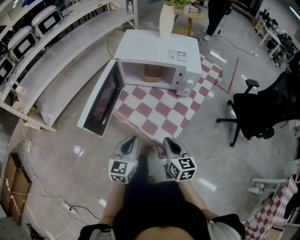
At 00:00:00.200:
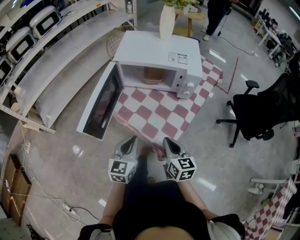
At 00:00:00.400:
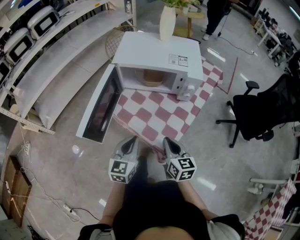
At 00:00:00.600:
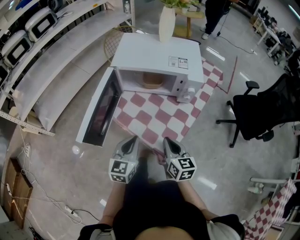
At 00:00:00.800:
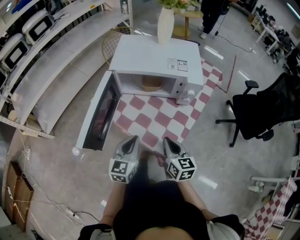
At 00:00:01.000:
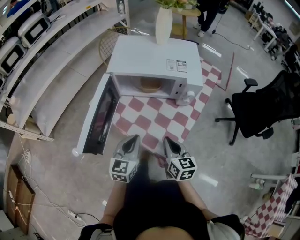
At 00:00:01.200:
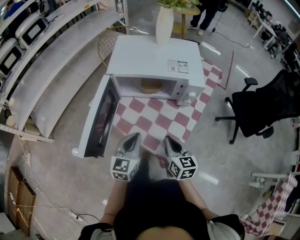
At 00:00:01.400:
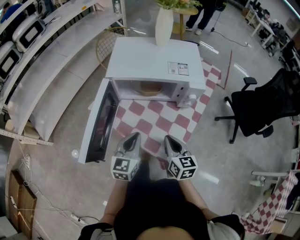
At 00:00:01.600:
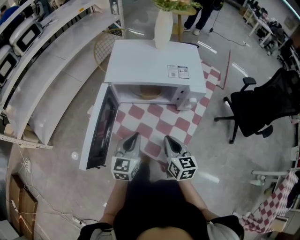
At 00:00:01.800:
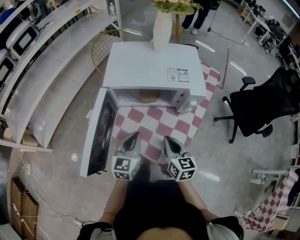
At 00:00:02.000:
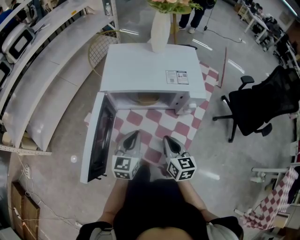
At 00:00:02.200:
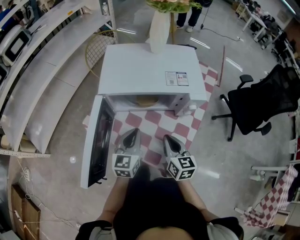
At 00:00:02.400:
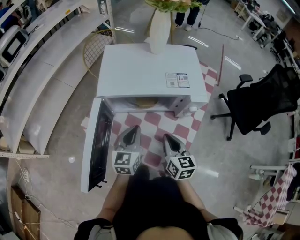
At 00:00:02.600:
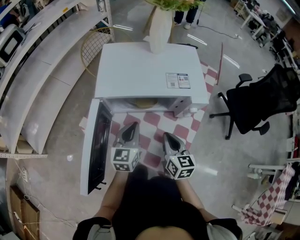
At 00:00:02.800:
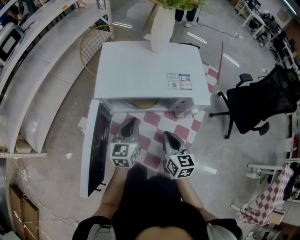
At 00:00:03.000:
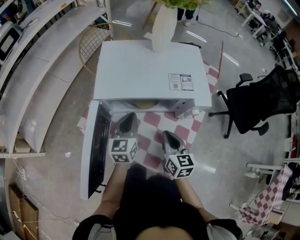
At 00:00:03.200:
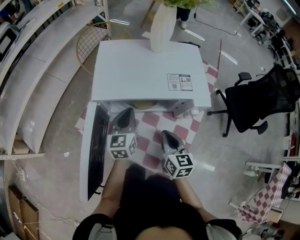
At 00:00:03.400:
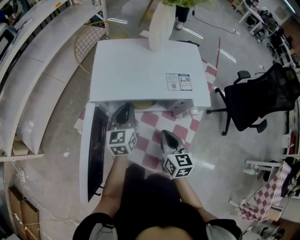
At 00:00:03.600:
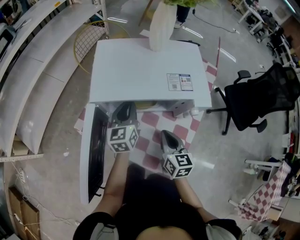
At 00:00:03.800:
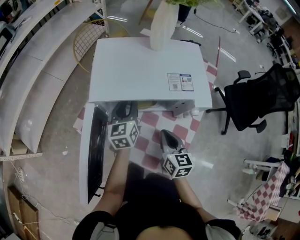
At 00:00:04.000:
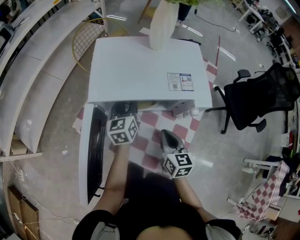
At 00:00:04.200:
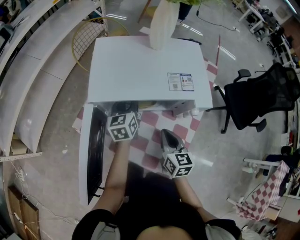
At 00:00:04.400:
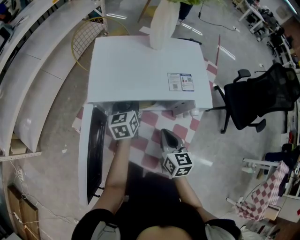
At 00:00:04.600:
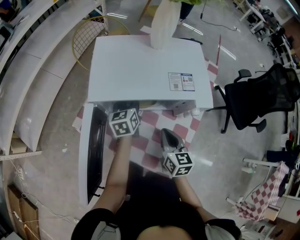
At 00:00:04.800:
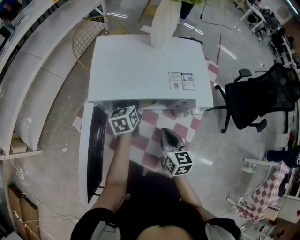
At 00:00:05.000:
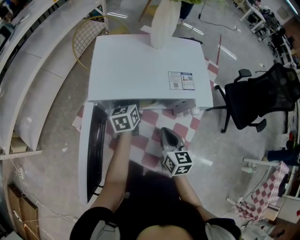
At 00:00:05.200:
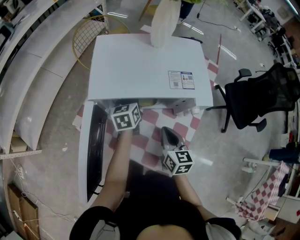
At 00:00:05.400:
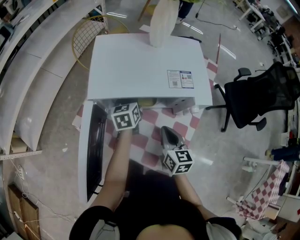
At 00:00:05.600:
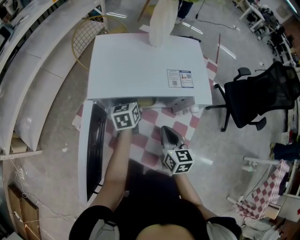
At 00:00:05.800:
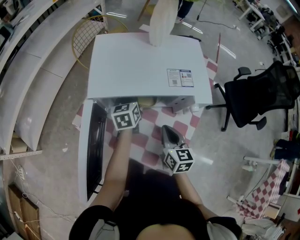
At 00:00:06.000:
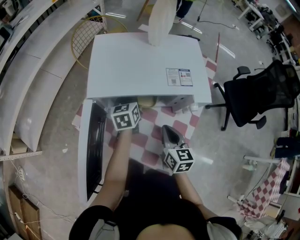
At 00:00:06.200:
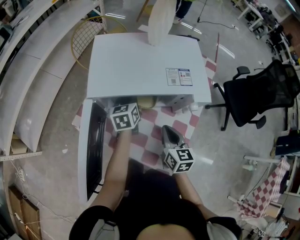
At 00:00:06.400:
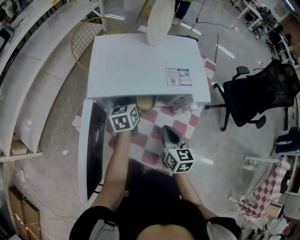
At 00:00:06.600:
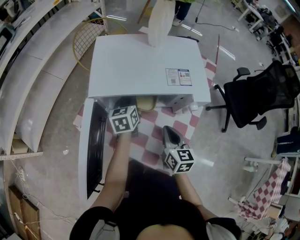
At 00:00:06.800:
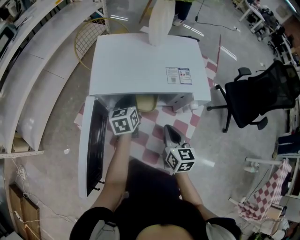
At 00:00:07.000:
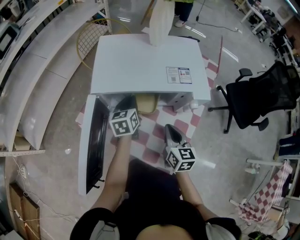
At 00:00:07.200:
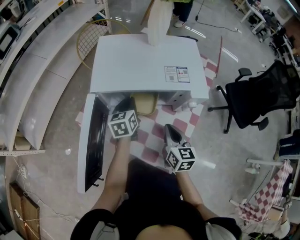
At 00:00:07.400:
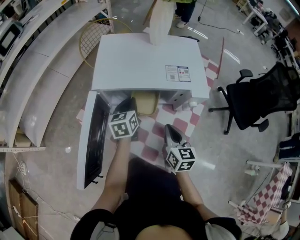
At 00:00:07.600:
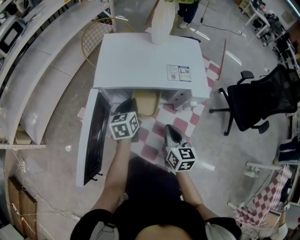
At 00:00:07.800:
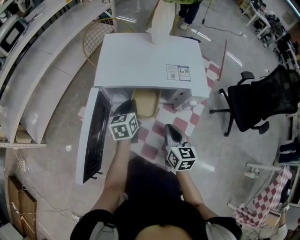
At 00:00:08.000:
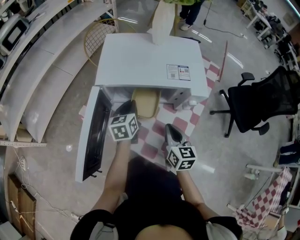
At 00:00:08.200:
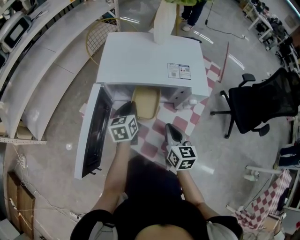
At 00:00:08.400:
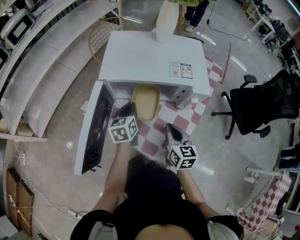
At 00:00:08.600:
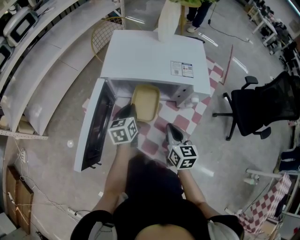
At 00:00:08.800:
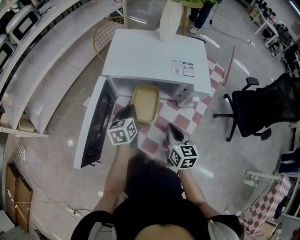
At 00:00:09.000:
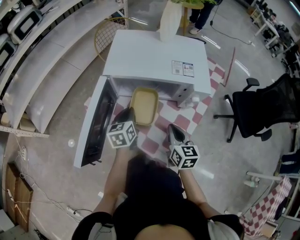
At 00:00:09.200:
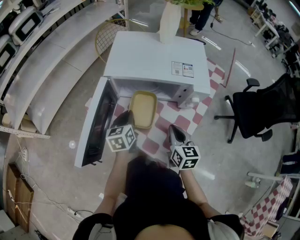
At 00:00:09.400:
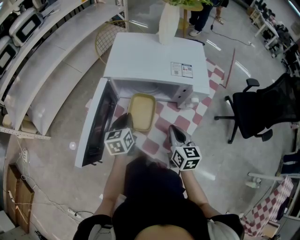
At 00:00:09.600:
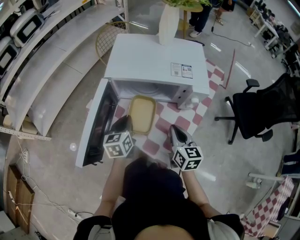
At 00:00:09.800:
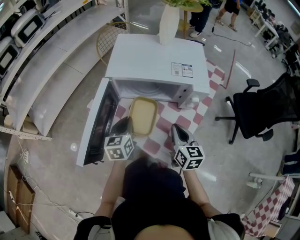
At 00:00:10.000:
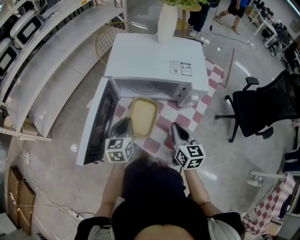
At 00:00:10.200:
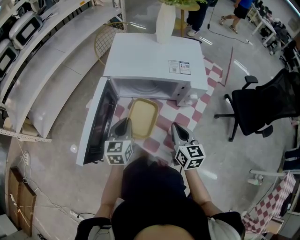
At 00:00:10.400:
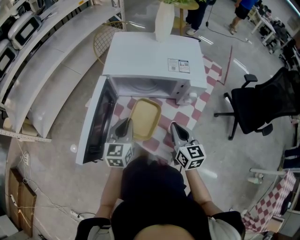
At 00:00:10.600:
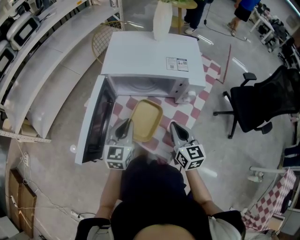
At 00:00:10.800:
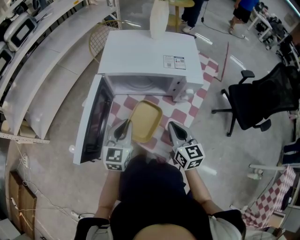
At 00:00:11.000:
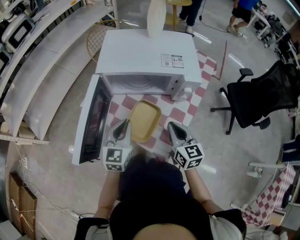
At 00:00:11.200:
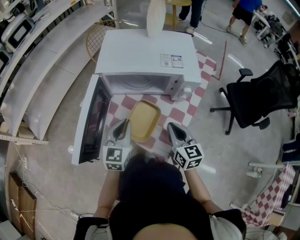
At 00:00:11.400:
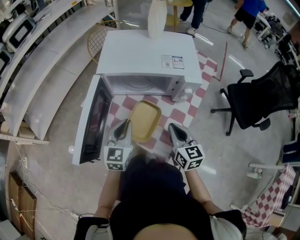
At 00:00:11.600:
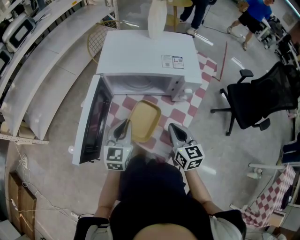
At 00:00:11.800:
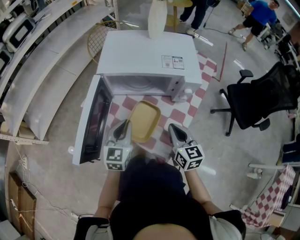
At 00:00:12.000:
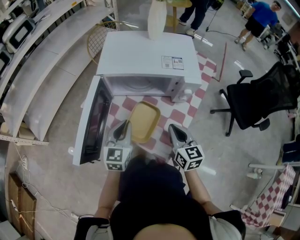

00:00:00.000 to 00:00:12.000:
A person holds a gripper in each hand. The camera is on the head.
00:00:00.000 to 00:00:01.600: Both grippers move forward, roughly 15 cm.
00:00:01.600 to 00:00:03.000: The right gripper heads forward, covering about 10 cm. Meanwhile the left gripper goes some 15 cm forward.
00:00:03.000 to 00:00:04.400: The left gripper moves forward, approximately 10 cm, and opens its fingers.
00:00:04.400 to 00:00:06.000: The left gripper closes up.
00:00:06.000 to 00:00:07.600: The left gripper travels backward by about 5 cm.
00:00:07.600 to 00:00:09.000: The left gripper moves backward, about 10 cm.
00:00:09.000 to 00:00:10.400: The left gripper is displaced backward and upward by approximately 10 cm, and turns by approximately 20 degrees.
00:00:10.400 to 00:00:12.000: The grippers move only a little.

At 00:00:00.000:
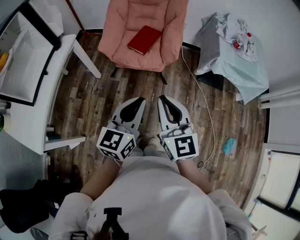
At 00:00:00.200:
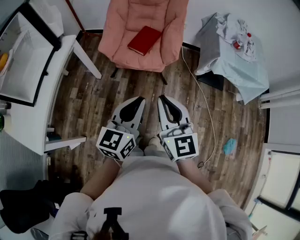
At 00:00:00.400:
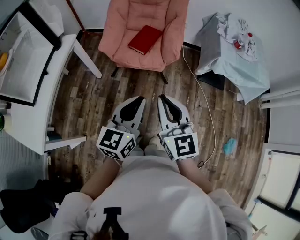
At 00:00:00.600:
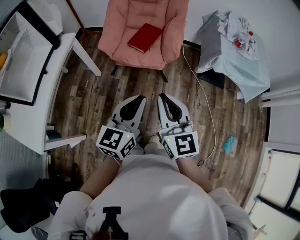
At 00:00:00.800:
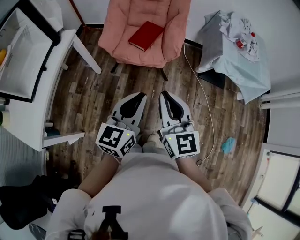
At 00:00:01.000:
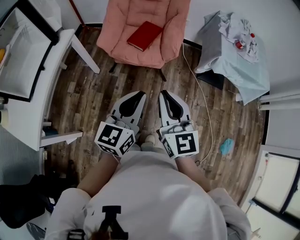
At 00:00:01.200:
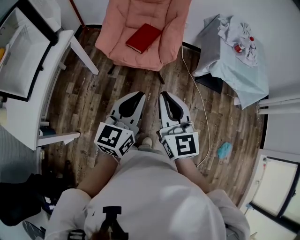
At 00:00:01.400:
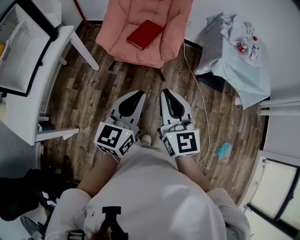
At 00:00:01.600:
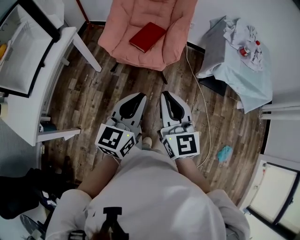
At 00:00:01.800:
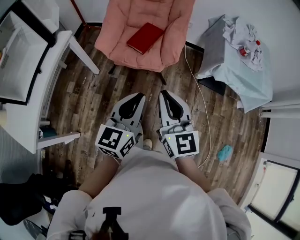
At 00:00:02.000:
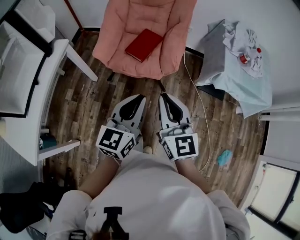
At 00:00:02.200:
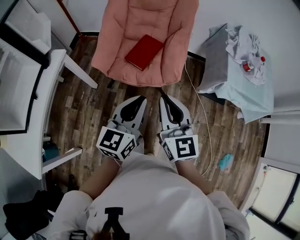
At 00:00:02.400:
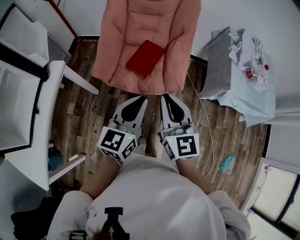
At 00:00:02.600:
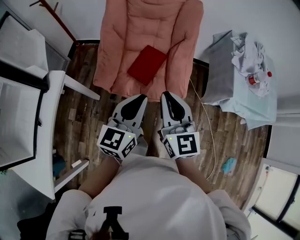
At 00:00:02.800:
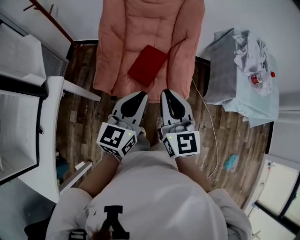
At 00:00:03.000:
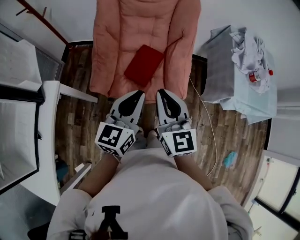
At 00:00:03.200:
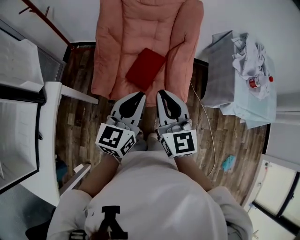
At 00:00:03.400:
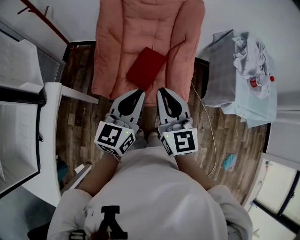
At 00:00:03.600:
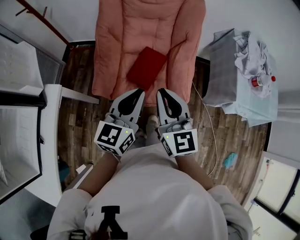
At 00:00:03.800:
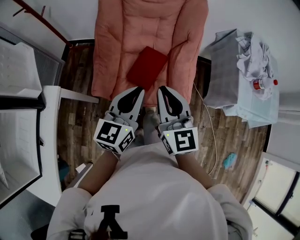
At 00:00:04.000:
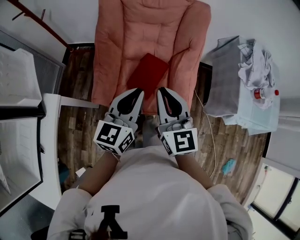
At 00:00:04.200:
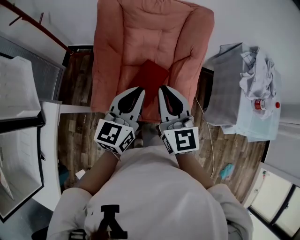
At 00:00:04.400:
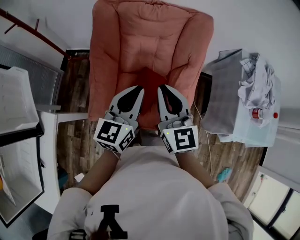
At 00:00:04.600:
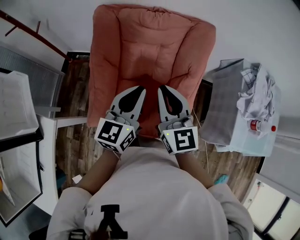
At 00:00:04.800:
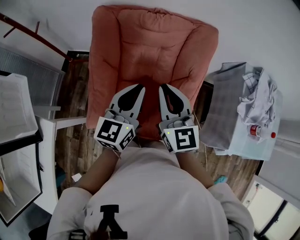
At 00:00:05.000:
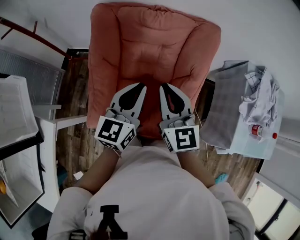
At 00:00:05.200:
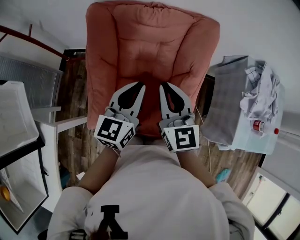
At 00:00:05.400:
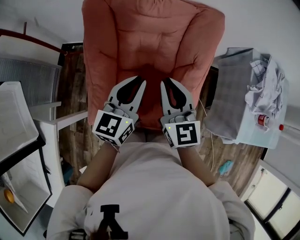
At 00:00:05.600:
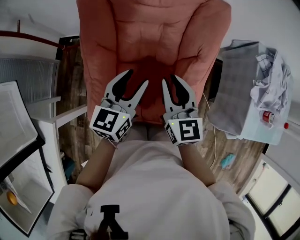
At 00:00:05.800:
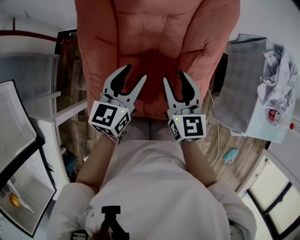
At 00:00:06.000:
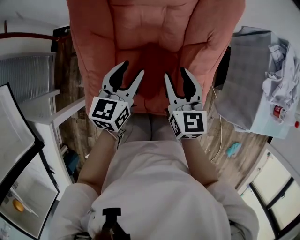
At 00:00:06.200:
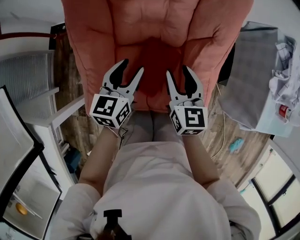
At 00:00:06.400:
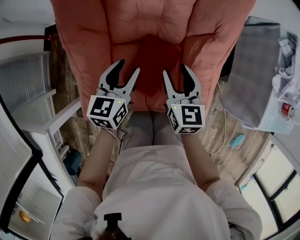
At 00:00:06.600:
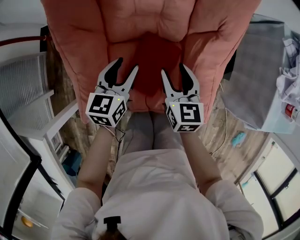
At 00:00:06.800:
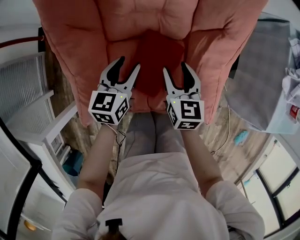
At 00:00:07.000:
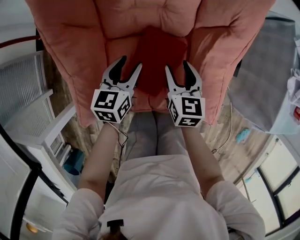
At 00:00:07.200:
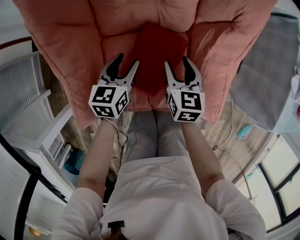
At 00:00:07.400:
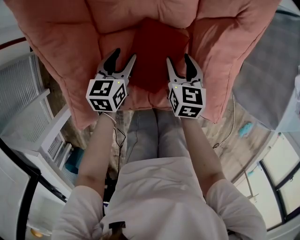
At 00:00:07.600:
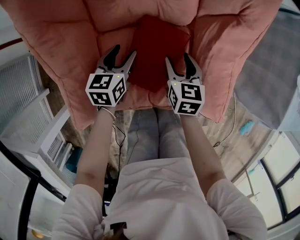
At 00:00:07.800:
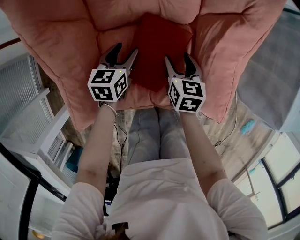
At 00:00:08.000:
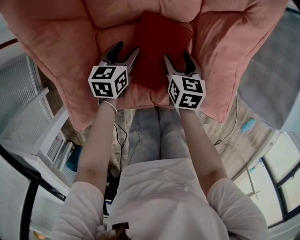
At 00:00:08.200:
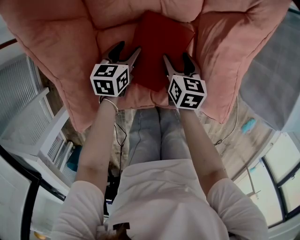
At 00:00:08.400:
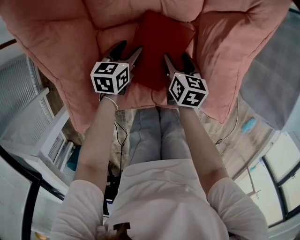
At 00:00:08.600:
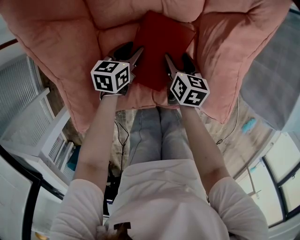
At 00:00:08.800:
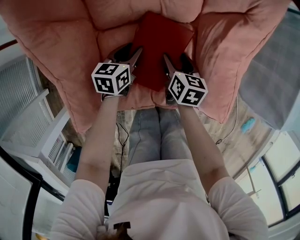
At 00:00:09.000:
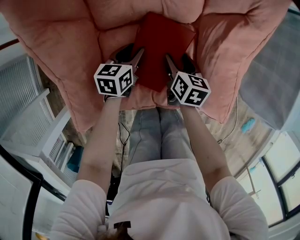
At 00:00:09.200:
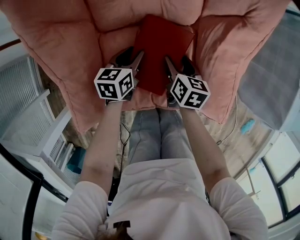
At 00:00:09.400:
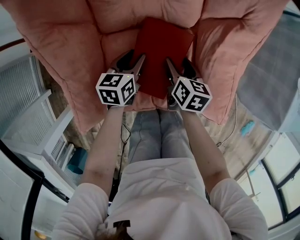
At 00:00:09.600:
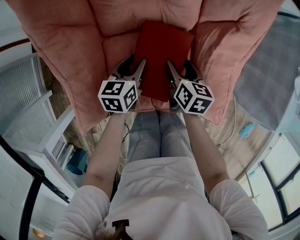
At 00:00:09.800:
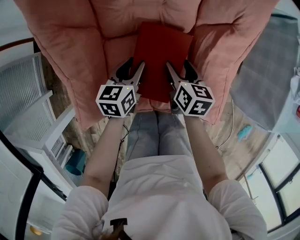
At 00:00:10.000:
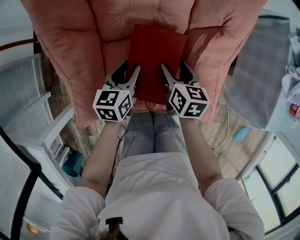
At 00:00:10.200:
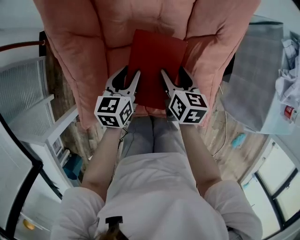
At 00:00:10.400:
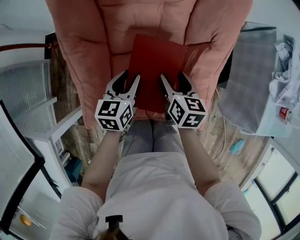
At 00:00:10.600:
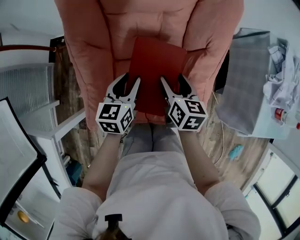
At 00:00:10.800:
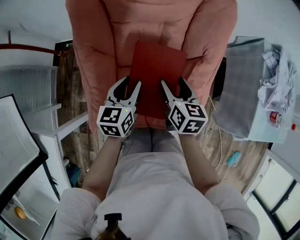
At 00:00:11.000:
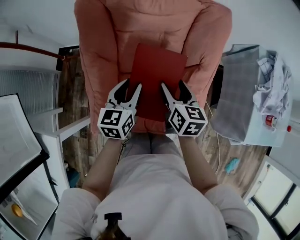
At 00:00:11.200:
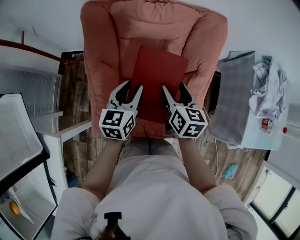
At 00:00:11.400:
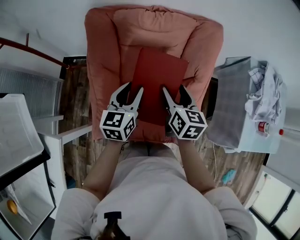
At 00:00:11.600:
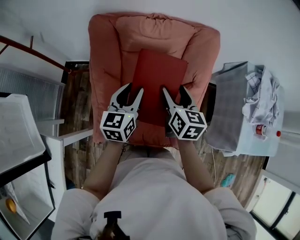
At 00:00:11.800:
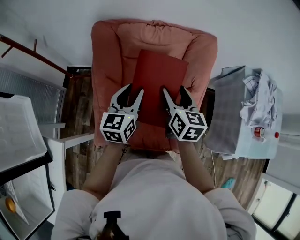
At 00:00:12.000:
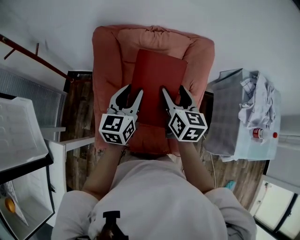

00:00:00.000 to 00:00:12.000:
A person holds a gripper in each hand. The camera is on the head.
00:00:00.000 to 00:00:01.600: The right gripper shifts by some 5 cm.
00:00:01.600 to 00:00:03.000: Both grippers travel together forward, about 35 cm.
00:00:03.000 to 00:00:04.400: The two grippers go roughly 20 cm forward.
00:00:04.400 to 00:00:06.000: Both grippers travel together downward and forward, some 20 cm. The left gripper opens its fingers; the right gripper swivels about 20 degrees, and opens up.
00:00:06.000 to 00:00:07.600: The two grippers go some 25 cm downward. The right gripper rotates roughly 30 degrees.
00:00:07.600 to 00:00:09.000: The grippers both shift downward by approximately 5 cm.
00:00:09.000 to 00:00:10.400: Both grippers travel together upward, approximately 20 cm.
00:00:10.400 to 00:00:12.000: The two grippers go about 25 cm upward. The left gripper changes its angle by about 20 degrees; the right gripper changes its angle by some 20 degrees.
